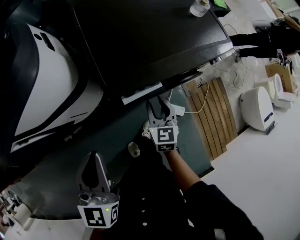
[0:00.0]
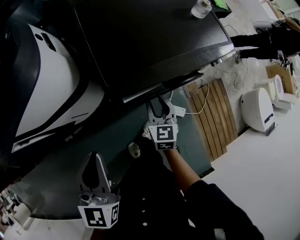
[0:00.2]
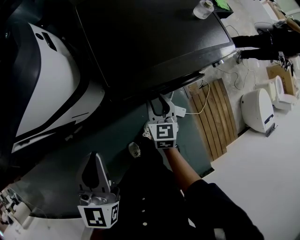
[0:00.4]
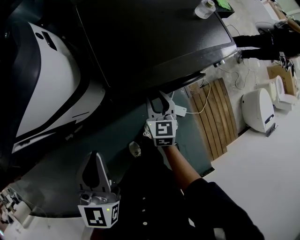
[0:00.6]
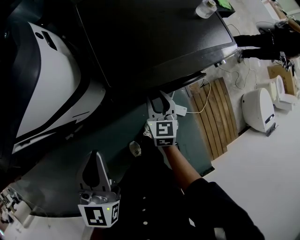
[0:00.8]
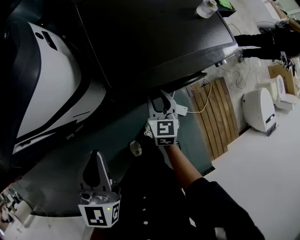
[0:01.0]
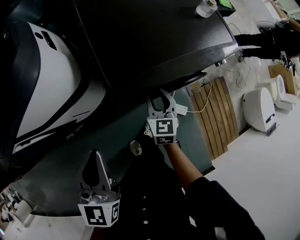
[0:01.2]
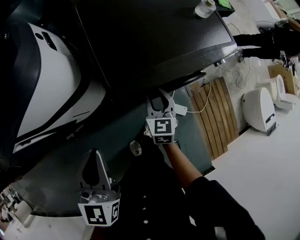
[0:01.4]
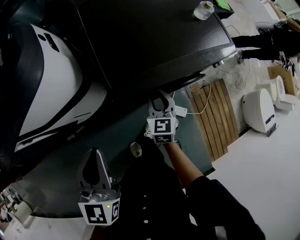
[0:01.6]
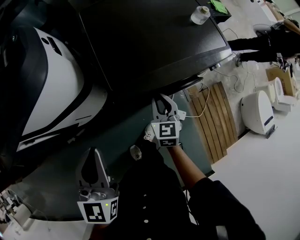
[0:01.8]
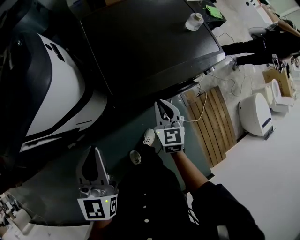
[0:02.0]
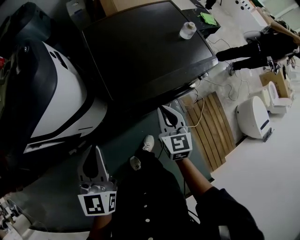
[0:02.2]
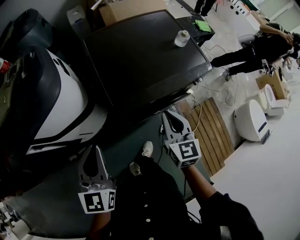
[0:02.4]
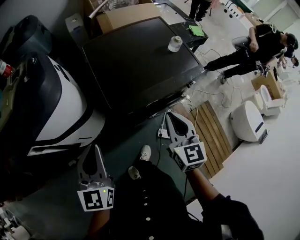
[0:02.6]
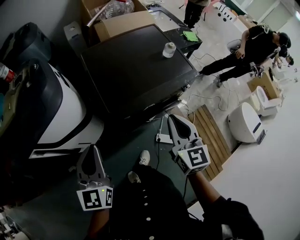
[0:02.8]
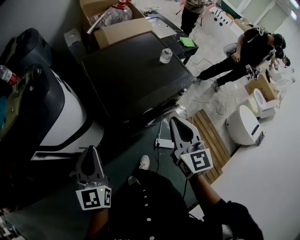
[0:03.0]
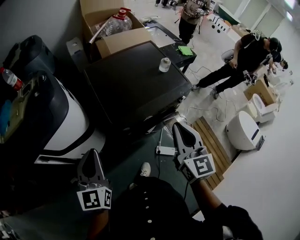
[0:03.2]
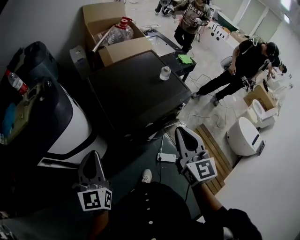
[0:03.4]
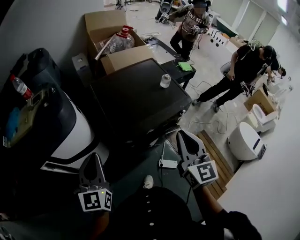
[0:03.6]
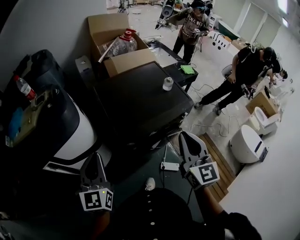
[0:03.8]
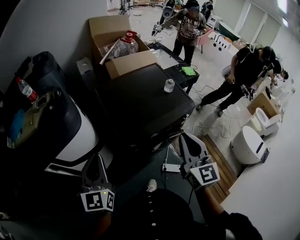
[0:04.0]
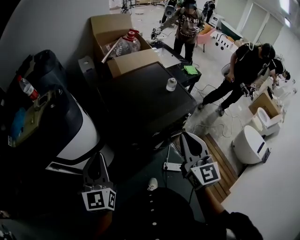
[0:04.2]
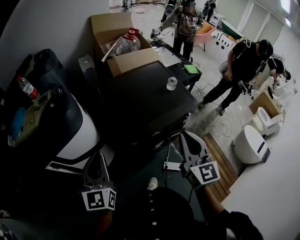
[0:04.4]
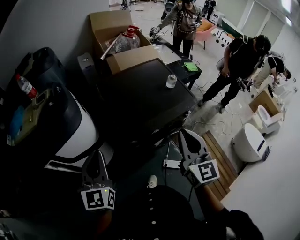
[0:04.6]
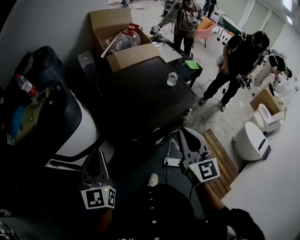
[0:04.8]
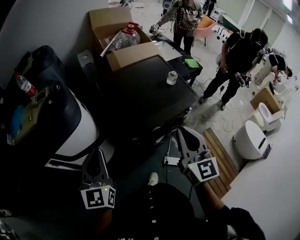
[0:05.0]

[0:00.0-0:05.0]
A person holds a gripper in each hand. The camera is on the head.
0:00.0 to 0:01.6: There are only small adjustments of the grippers.
0:01.6 to 0:03.4: The left gripper heads upward, covering approximately 10 cm. The right gripper moves upward, roughly 35 cm, rotates roughly 30 degrees, and closes its fingers.
0:03.4 to 0:05.0: The grippers move only a little.

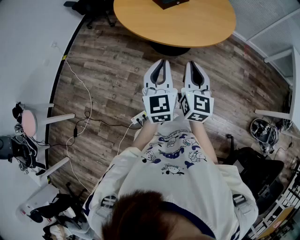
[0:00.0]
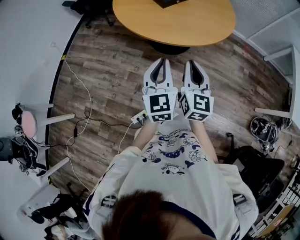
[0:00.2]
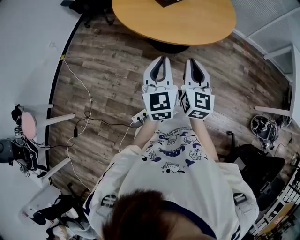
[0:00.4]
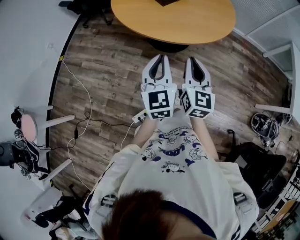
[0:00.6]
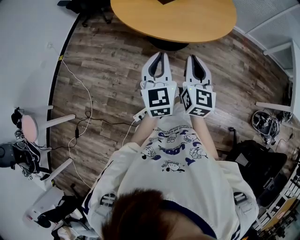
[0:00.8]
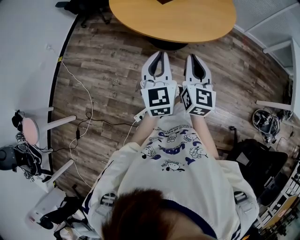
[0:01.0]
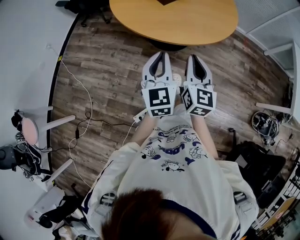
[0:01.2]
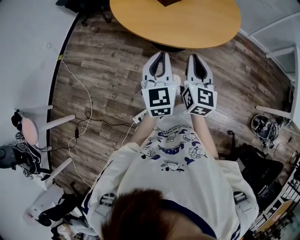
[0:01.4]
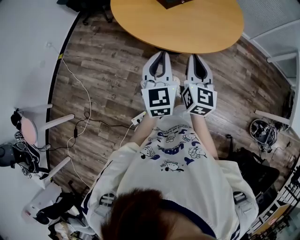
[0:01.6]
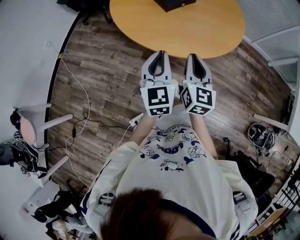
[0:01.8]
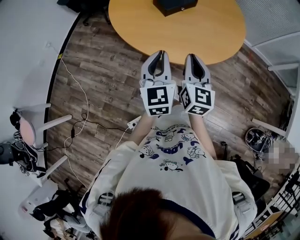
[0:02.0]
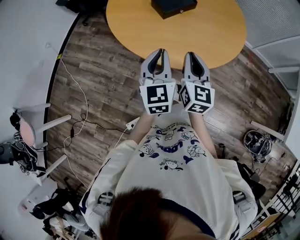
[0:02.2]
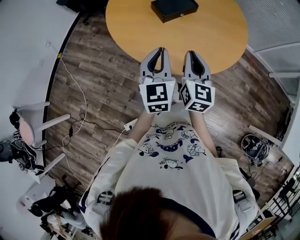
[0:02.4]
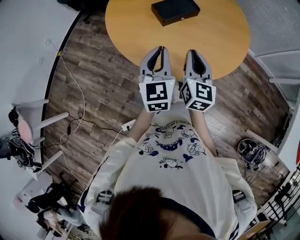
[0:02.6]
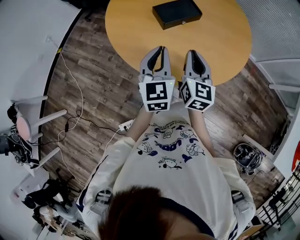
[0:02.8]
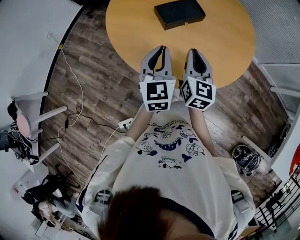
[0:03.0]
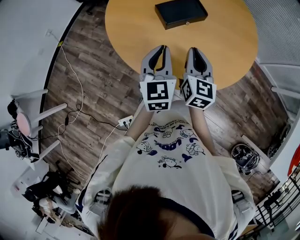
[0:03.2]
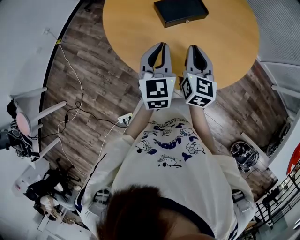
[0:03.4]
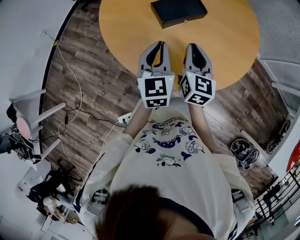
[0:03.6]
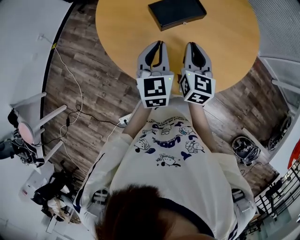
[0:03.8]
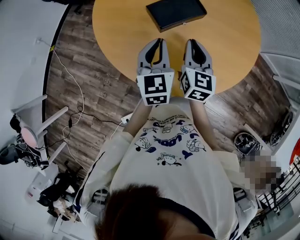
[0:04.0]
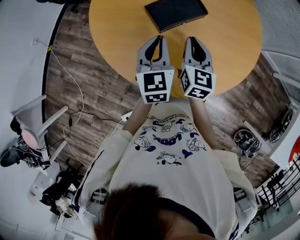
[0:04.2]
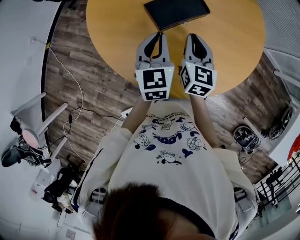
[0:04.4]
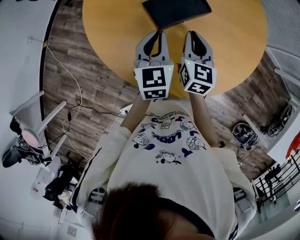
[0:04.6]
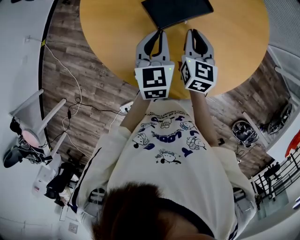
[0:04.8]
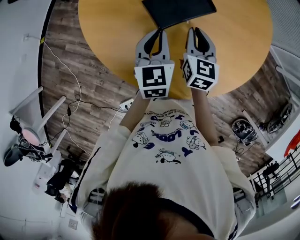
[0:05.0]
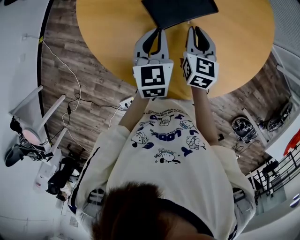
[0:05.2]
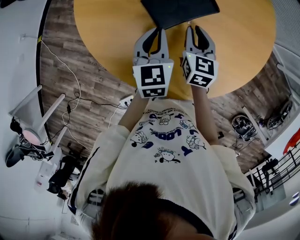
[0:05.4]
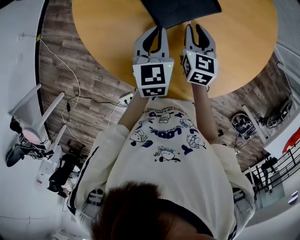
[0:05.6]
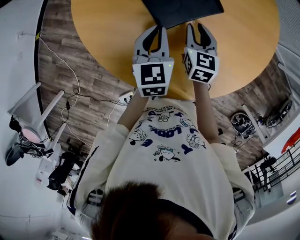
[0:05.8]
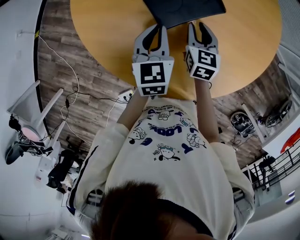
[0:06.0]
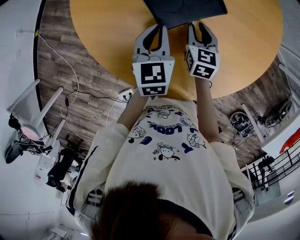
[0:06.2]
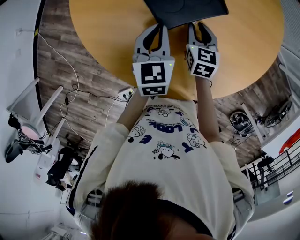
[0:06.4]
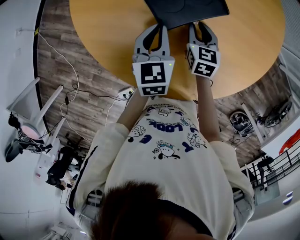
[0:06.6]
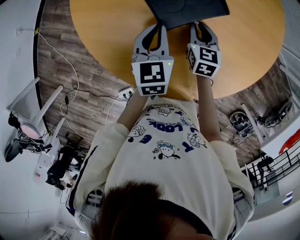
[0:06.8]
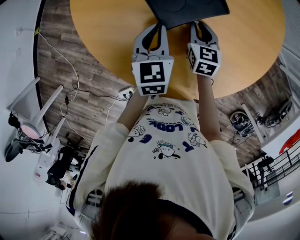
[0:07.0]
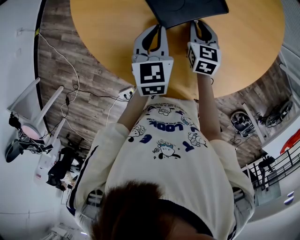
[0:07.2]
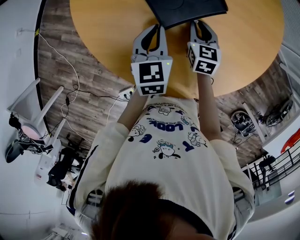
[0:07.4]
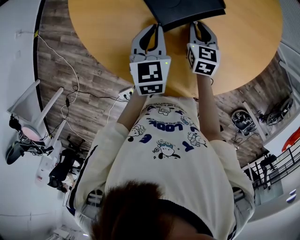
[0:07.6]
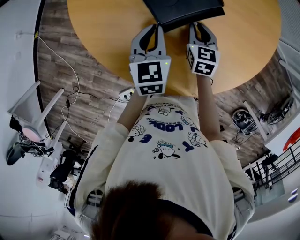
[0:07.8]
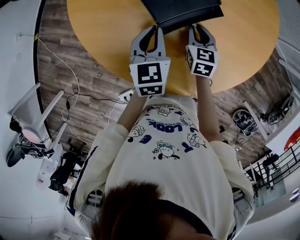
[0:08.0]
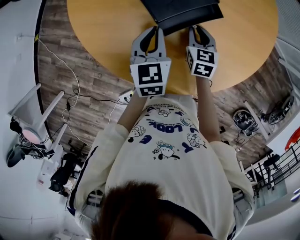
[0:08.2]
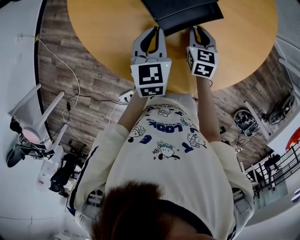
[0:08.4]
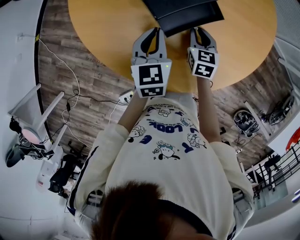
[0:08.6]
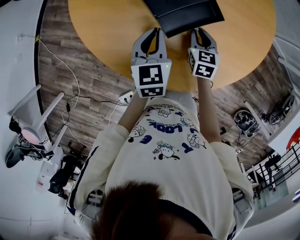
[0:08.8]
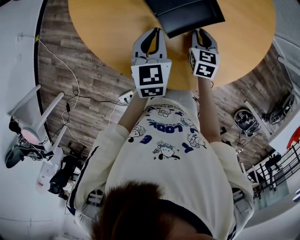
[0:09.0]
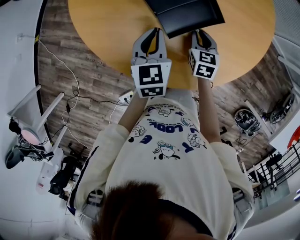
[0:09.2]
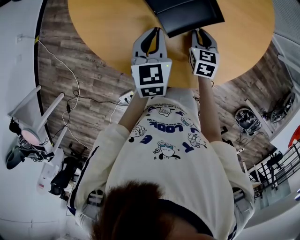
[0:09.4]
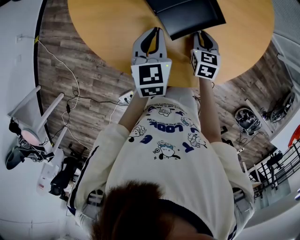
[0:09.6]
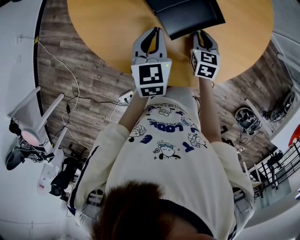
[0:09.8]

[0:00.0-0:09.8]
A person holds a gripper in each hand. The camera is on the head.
0:00.0 to 0:01.4: Both grippers move forward, about 10 cm.
0:01.4 to 0:02.8: The two grippers go approximately 25 cm forward.
0:02.8 to 0:04.2: Both grippers move forward and downward, approximately 15 cm.
0:04.2 to 0:05.6: The grippers both shift downward and forward by about 10 cm.
0:05.6 to 0:07.0: The right gripper moves downward, about 5 cm.
0:07.0 to 0:08.4: The right gripper moves backward, about 5 cm.
0:08.4 to 0:09.8: The right gripper ends up some 5 cm from where it was.

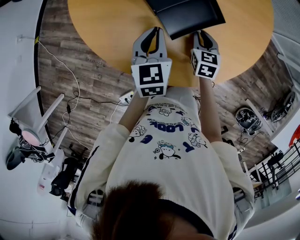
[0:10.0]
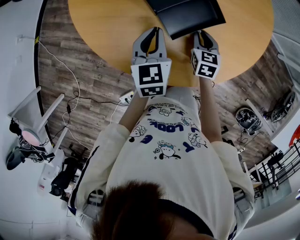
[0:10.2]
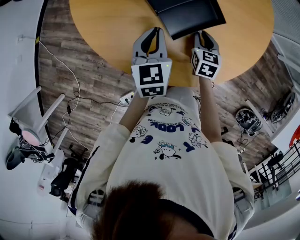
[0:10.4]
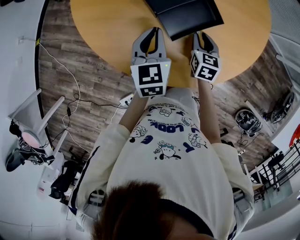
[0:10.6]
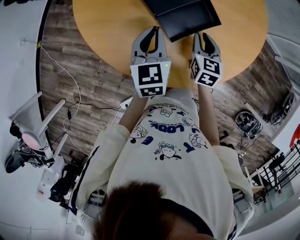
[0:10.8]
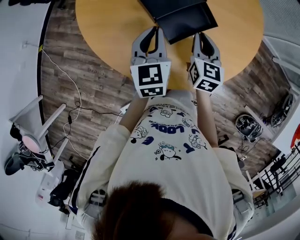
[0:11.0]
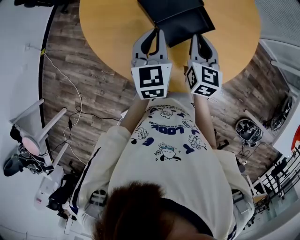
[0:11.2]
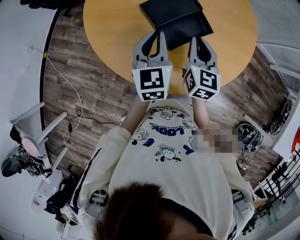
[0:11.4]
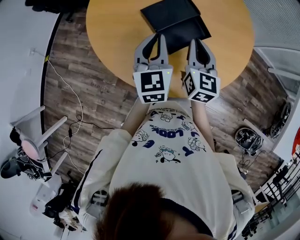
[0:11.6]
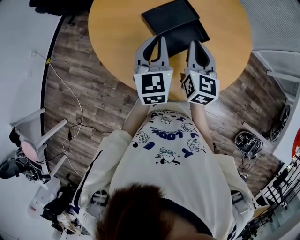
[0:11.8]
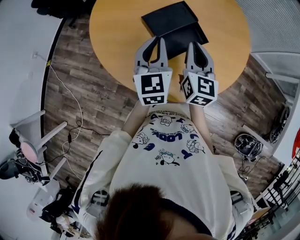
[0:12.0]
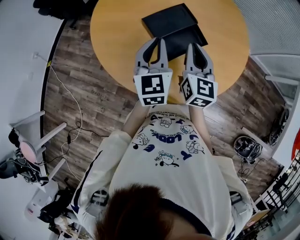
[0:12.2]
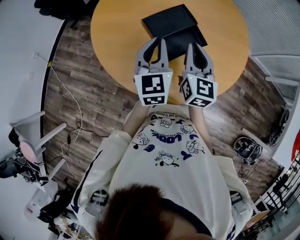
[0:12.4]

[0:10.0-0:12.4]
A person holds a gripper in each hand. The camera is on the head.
0:10.0 to 0:11.2: The right gripper moves upward, roughly 15 cm, and rotates some 20 degrees. The left gripper shifts some 10 cm upward.
0:11.2 to 0:12.4: Both grippers move upward, some 5 cm.

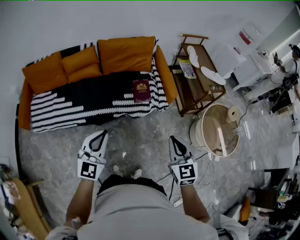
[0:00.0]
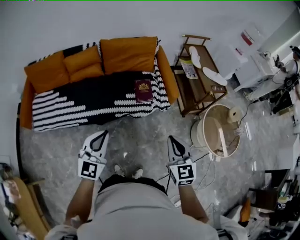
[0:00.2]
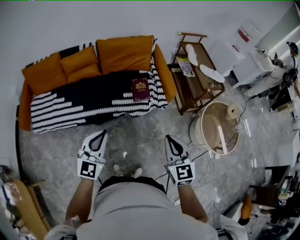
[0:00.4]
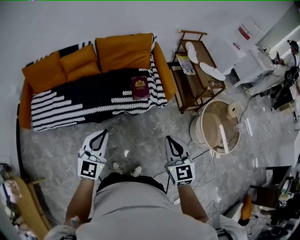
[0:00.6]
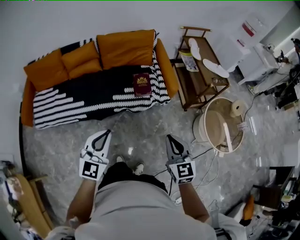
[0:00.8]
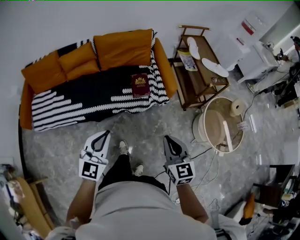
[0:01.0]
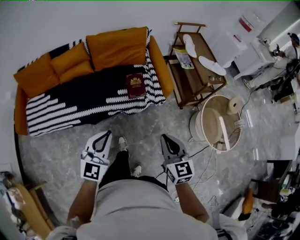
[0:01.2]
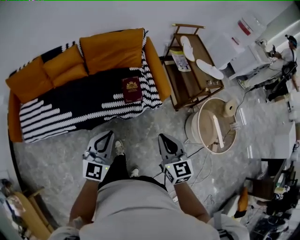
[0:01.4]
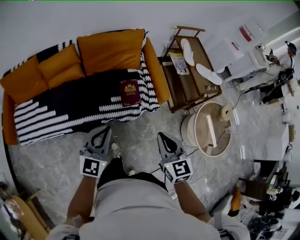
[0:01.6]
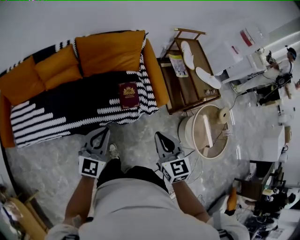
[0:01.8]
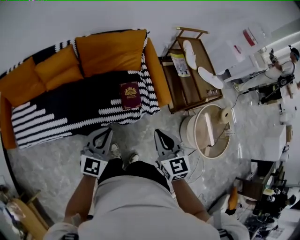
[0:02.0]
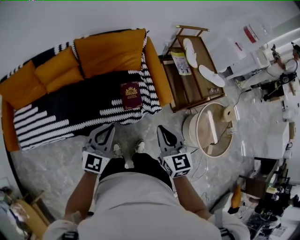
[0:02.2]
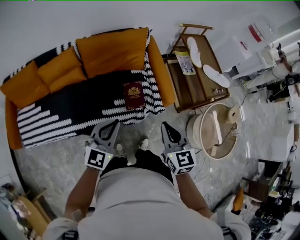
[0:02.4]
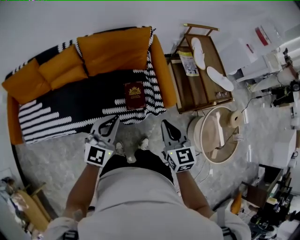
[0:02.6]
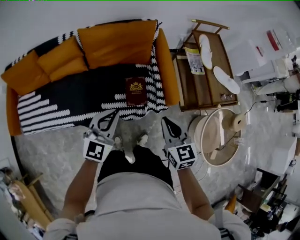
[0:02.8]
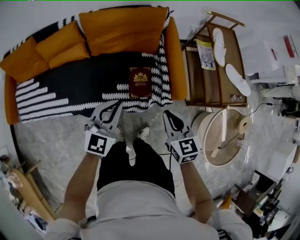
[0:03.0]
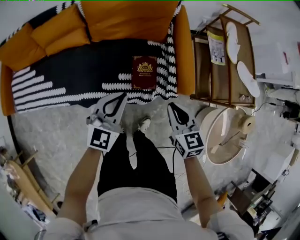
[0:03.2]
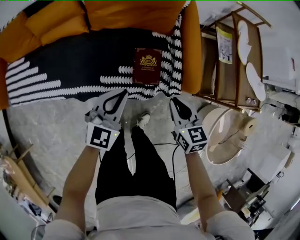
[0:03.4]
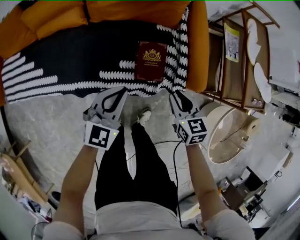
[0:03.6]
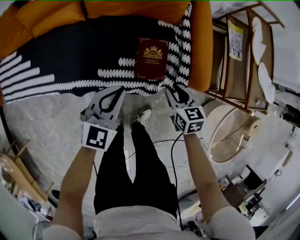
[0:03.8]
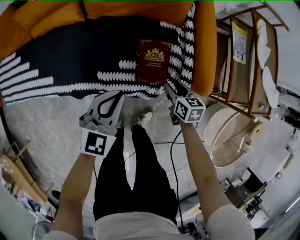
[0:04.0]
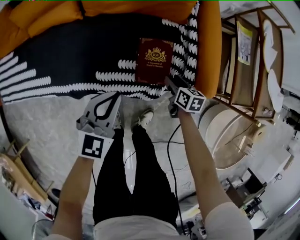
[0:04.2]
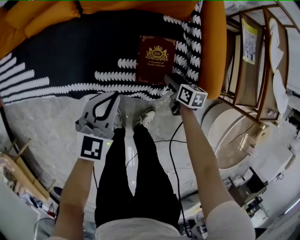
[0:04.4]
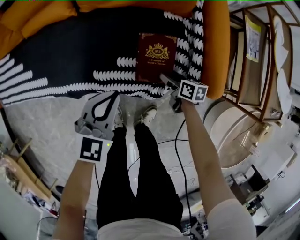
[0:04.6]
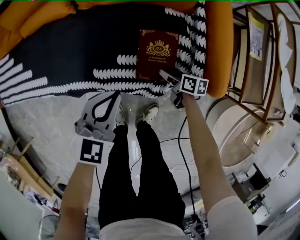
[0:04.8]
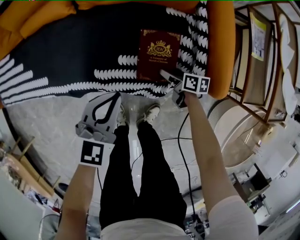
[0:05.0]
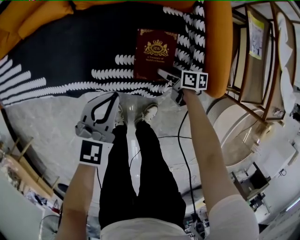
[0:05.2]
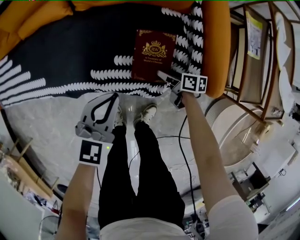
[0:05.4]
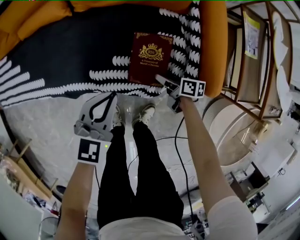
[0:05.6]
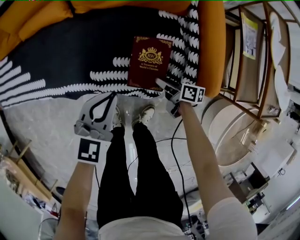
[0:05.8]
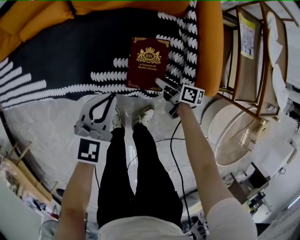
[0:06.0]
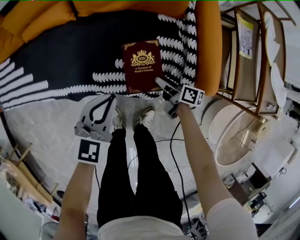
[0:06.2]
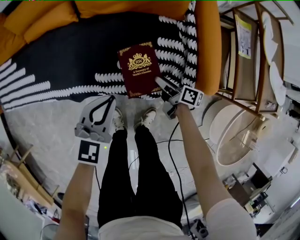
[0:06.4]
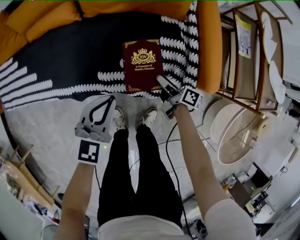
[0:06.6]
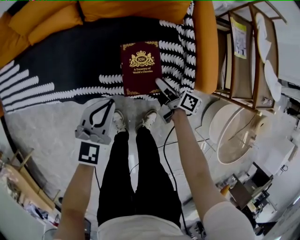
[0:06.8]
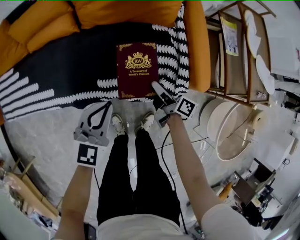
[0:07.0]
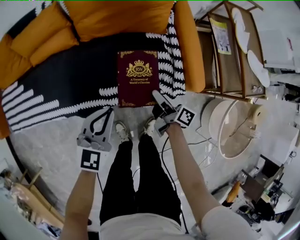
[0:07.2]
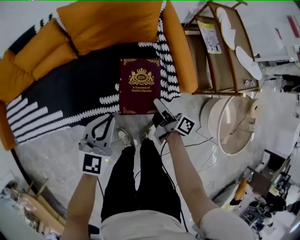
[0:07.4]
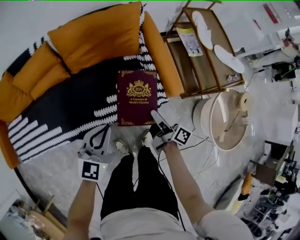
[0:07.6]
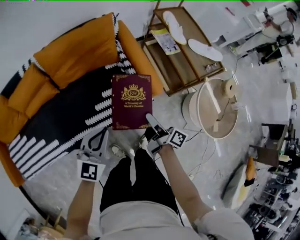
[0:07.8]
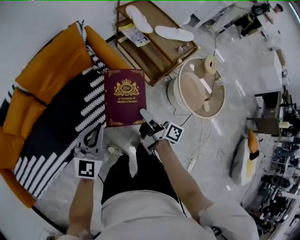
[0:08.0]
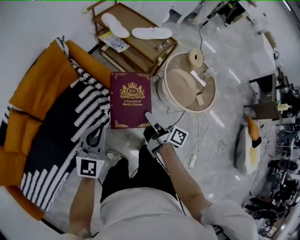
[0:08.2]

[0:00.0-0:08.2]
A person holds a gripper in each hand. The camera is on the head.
0:00.0 to 0:01.6: Both grippers travel together forward, about 20 cm.
0:01.6 to 0:03.2: Both grippers travel together forward and downward, approximately 30 cm.
0:03.2 to 0:05.0: The left gripper shifts roughly 20 cm downward. Meanwhile the right gripper goes about 40 cm downward, twists about 40 degrees clockwise, seen from behind, and opens its fingers.
0:05.0 to 0:06.6: The left gripper ends up roughly 5 cm from where it was; the right gripper moves upward, roughly 10 cm, and turns by approximately 30 degrees.
0:06.6 to 0:08.2: Both grippers move upward, about 30 cm. The left gripper swivels roughly 40 degrees, while the right gripper turns by approximately 60 degrees.
